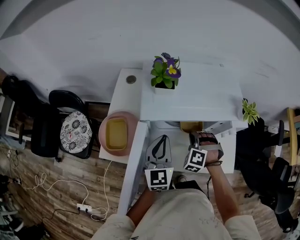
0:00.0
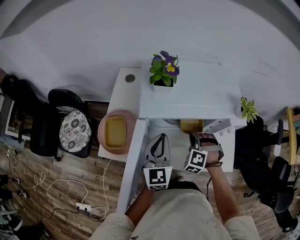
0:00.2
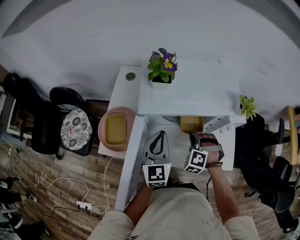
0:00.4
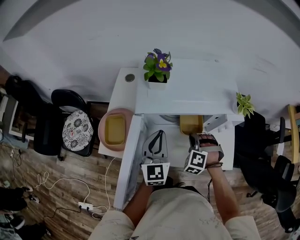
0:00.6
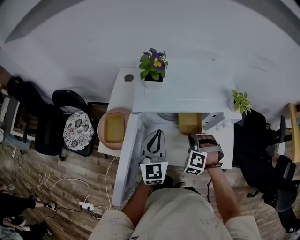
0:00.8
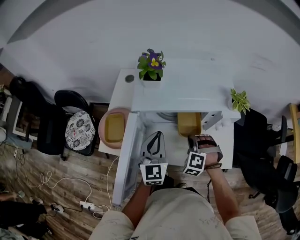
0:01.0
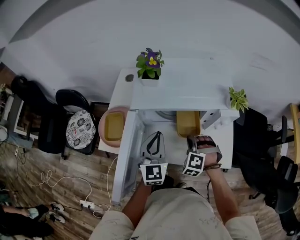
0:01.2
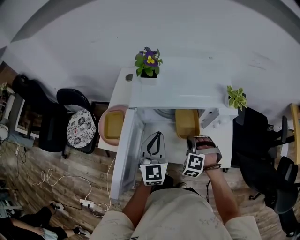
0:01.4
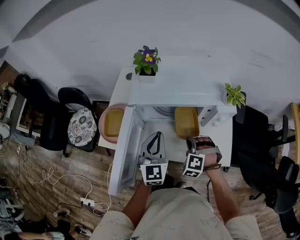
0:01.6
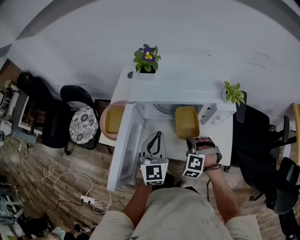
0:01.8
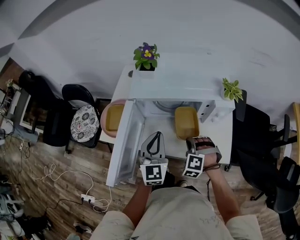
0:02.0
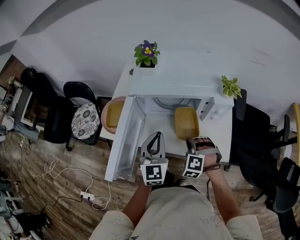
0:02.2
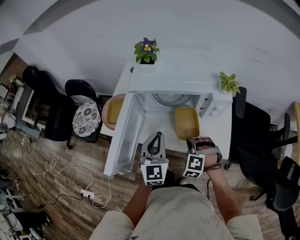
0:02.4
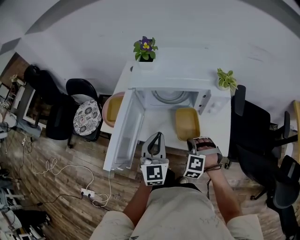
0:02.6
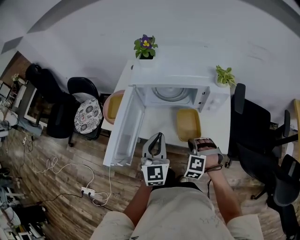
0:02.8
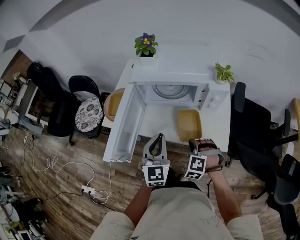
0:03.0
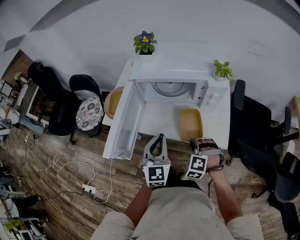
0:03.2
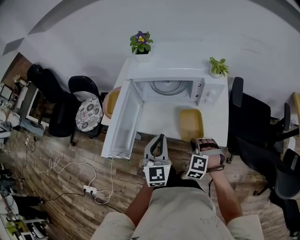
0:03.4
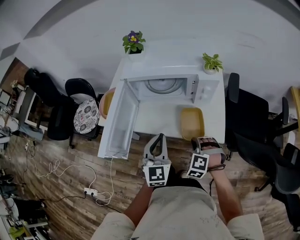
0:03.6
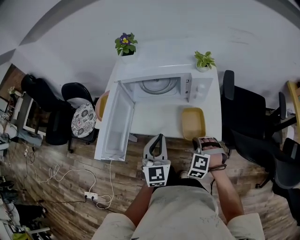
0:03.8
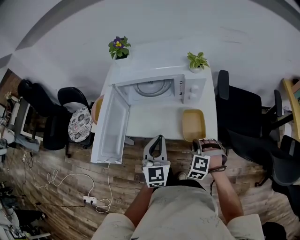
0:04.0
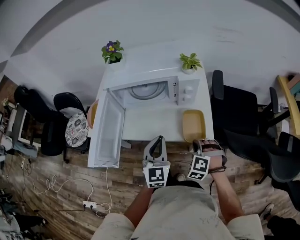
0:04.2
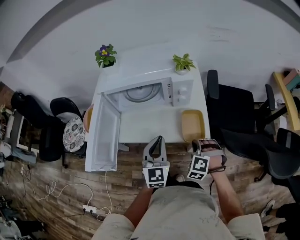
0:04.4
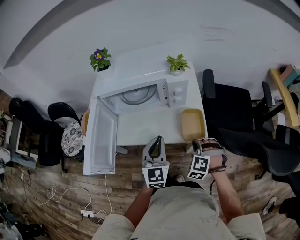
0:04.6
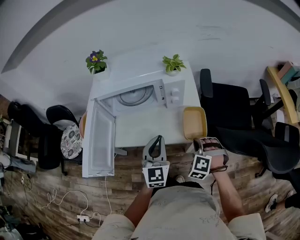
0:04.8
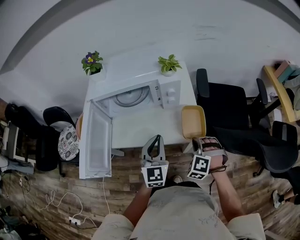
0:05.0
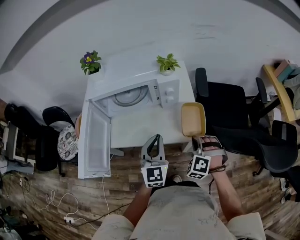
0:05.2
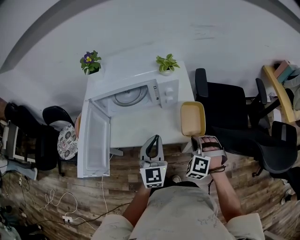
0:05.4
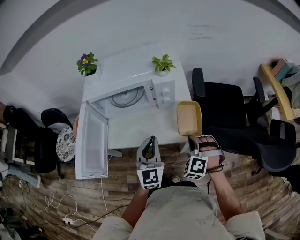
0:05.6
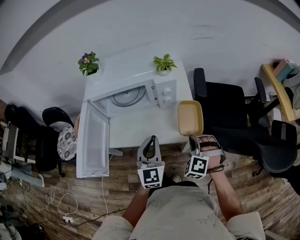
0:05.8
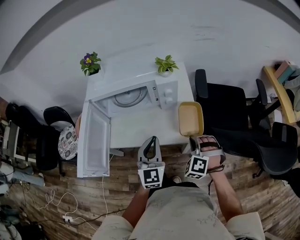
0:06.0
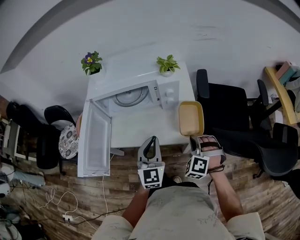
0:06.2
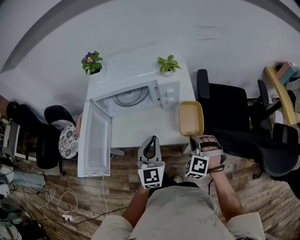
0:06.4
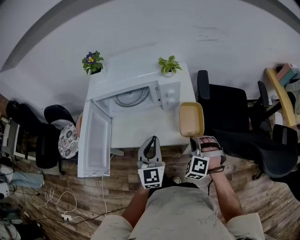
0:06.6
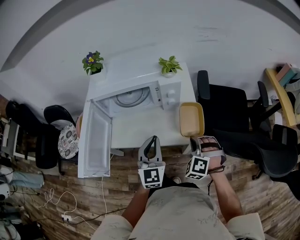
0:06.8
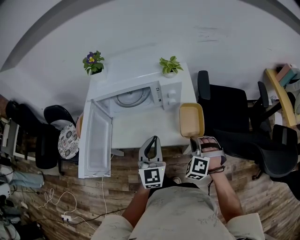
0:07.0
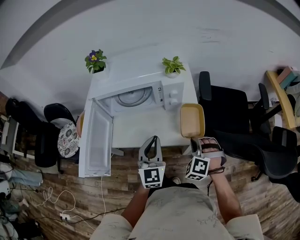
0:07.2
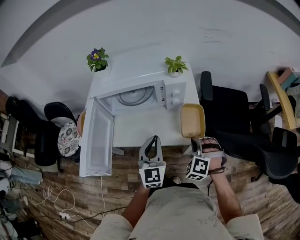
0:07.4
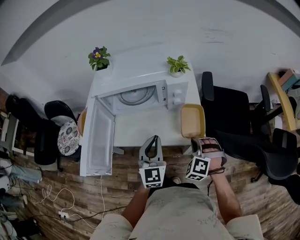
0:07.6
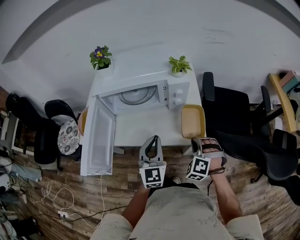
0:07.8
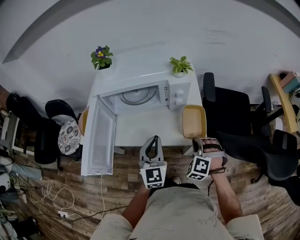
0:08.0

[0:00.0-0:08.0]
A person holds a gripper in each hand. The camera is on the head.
0:00.0 to 0:01.6: The right gripper moves backward, approximately 10 cm. The left gripper shifts by about 5 cm.
0:01.6 to 0:03.2: Both grippers move backward, approximately 15 cm.
0:03.2 to 0:04.8: Both grippers travel together to the right, roughly 15 cm.
0:04.8 to 0:08.0: There are only small adjustments of the grippers.

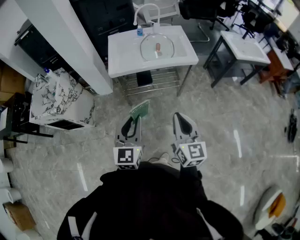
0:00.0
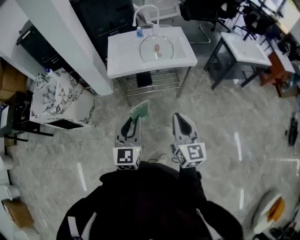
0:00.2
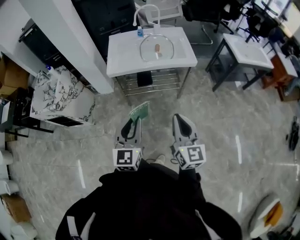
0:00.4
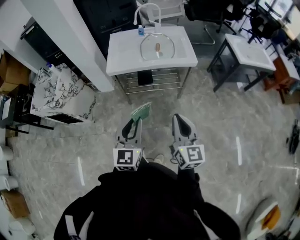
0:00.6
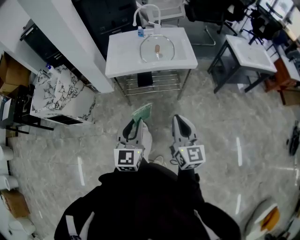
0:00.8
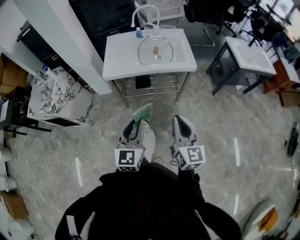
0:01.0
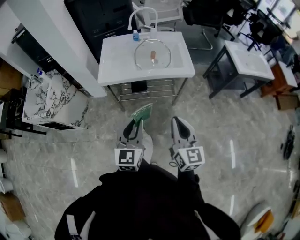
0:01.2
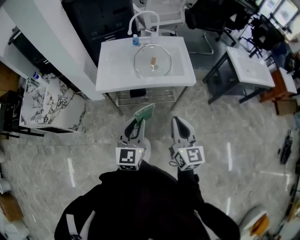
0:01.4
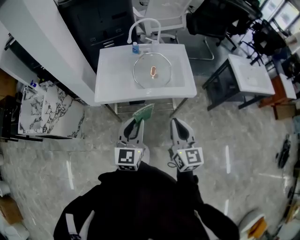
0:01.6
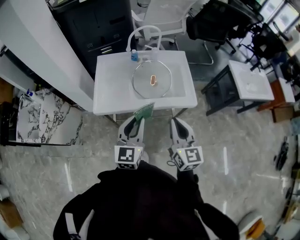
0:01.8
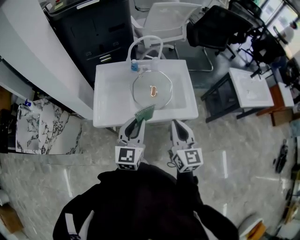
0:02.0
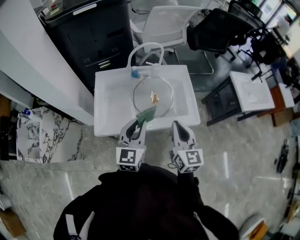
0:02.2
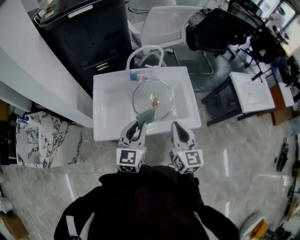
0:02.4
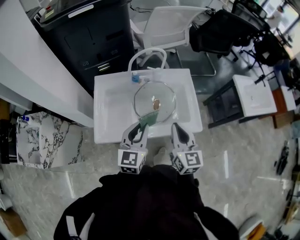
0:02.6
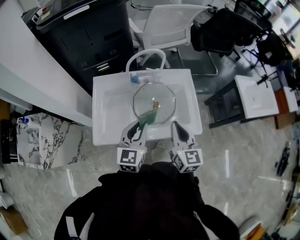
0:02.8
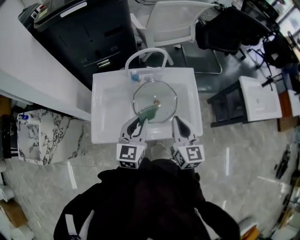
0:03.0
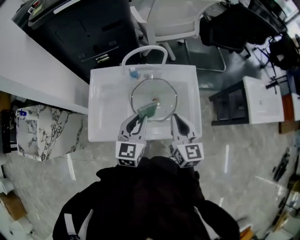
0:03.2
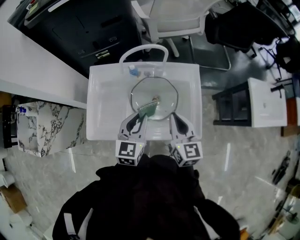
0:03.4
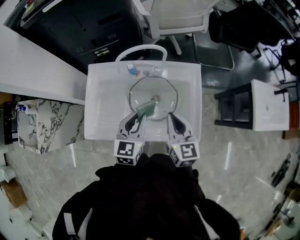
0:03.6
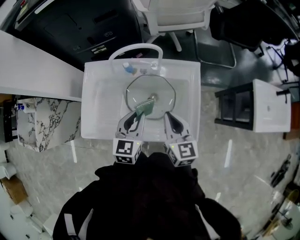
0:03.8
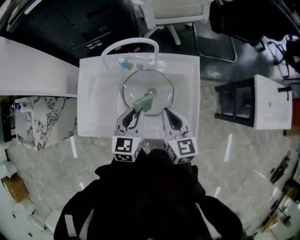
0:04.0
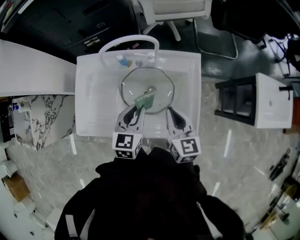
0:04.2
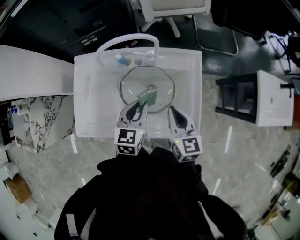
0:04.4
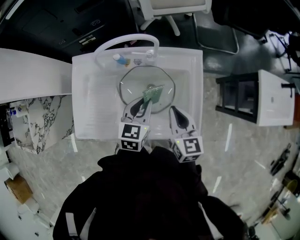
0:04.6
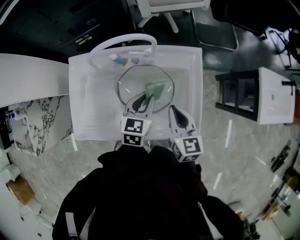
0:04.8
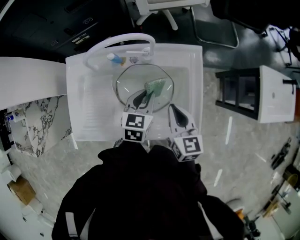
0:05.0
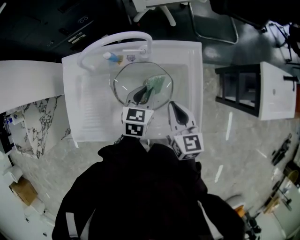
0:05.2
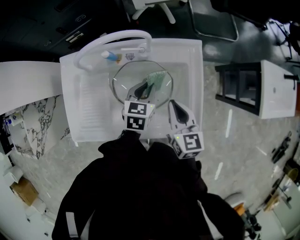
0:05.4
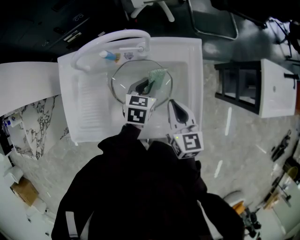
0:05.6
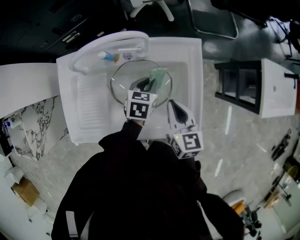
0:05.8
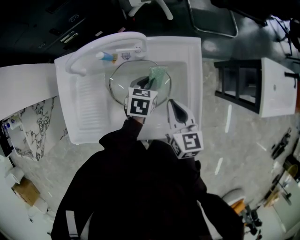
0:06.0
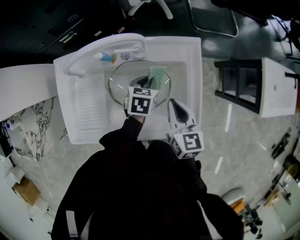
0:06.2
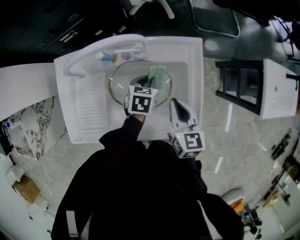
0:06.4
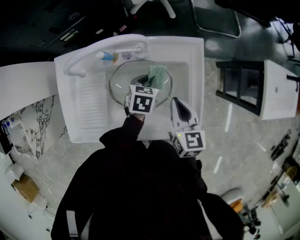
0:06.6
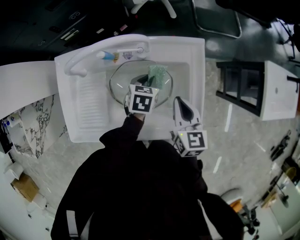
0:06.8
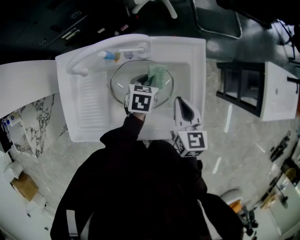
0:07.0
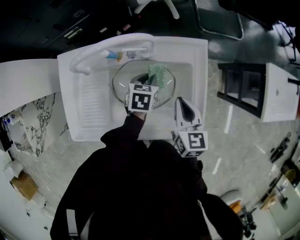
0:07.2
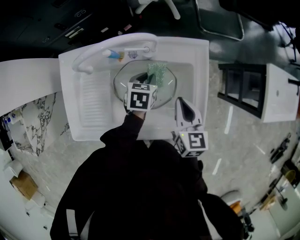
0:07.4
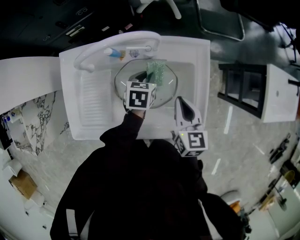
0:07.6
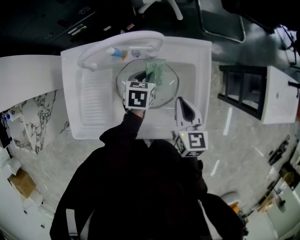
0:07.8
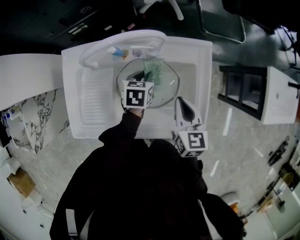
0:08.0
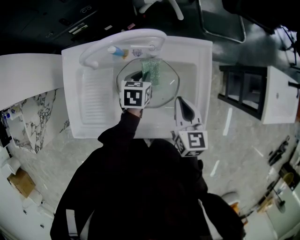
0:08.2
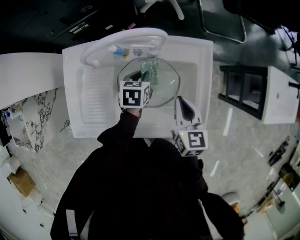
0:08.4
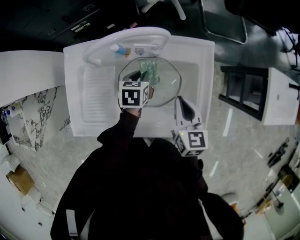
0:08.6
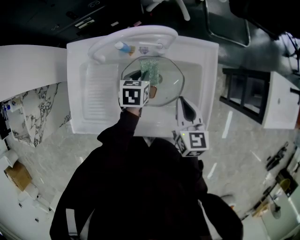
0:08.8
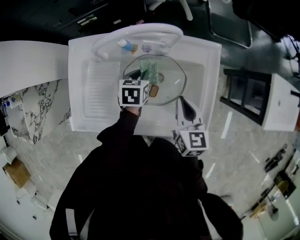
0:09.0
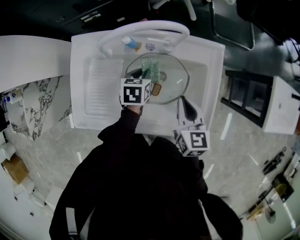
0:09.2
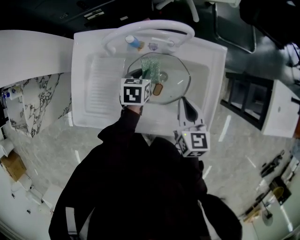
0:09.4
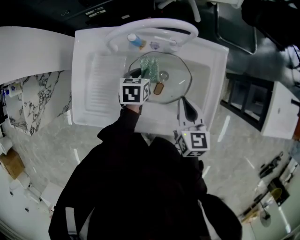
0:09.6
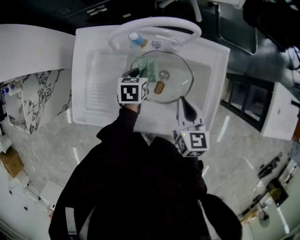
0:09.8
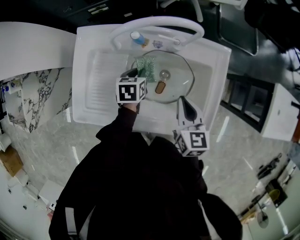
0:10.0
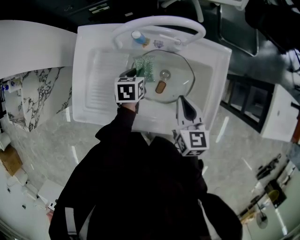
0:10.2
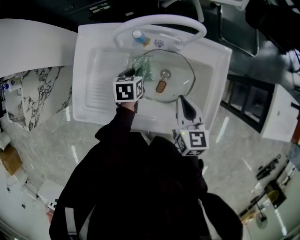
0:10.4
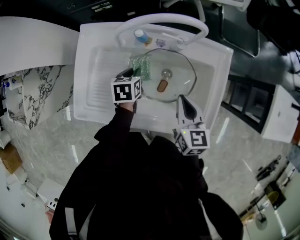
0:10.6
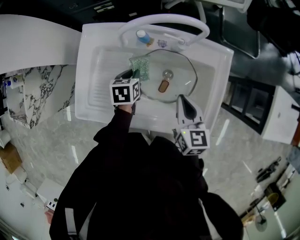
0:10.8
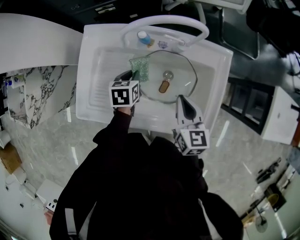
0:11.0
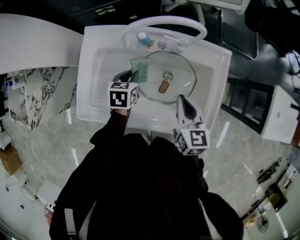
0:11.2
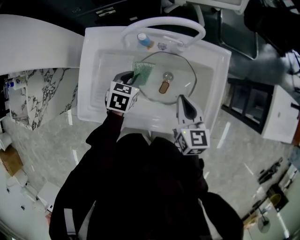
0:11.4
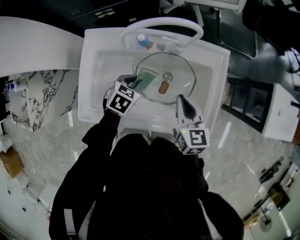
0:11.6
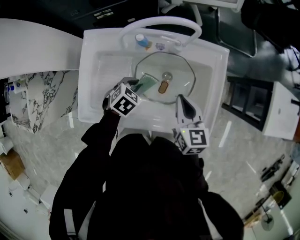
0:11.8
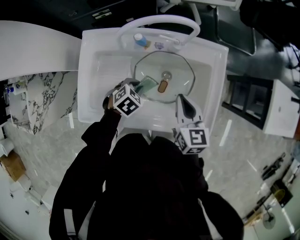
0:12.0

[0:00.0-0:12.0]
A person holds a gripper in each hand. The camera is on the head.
0:00.0 to 0:01.6: The left gripper moves forward and to the right, about 25 cm, while the right gripper travels forward by about 25 cm.
0:01.6 to 0:03.0: Both grippers move forward, about 30 cm.
0:03.0 to 0:04.4: The grippers both shift downward, forward and to the right by approximately 15 cm.
0:04.4 to 0:06.0: The right gripper goes some 5 cm downward; the left gripper moves downward, forward and to the right, some 20 cm, and rotates some 30 degrees.
0:06.0 to 0:07.6: The grippers make only small movements.
0:07.6 to 0:09.0: The left gripper heads to the left, covering some 5 cm.
0:09.0 to 0:10.4: The left gripper travels to the left by about 5 cm.
0:10.4 to 0:12.0: The left gripper moves backward, some 5 cm, and twists some 50 degrees clockwise, seen from behind.

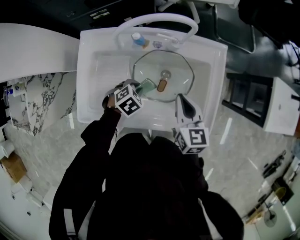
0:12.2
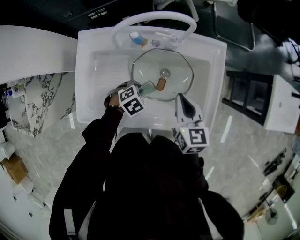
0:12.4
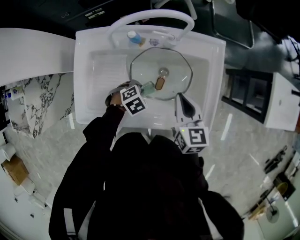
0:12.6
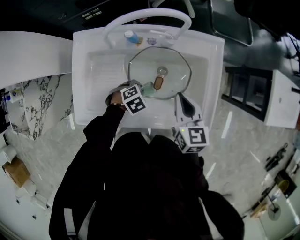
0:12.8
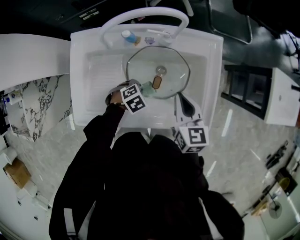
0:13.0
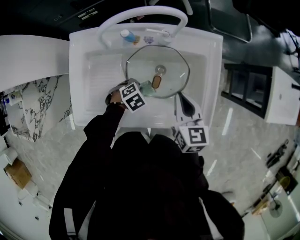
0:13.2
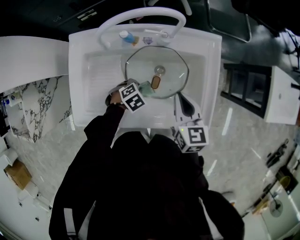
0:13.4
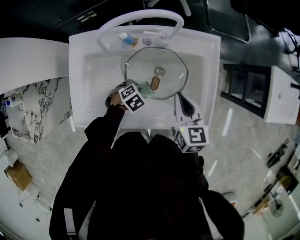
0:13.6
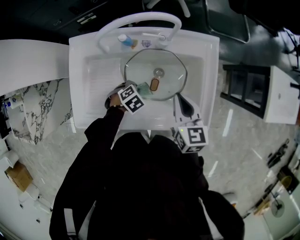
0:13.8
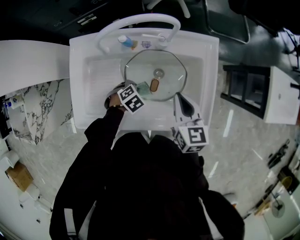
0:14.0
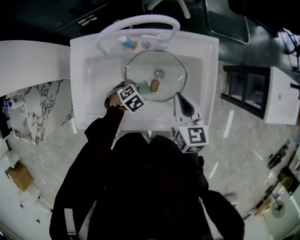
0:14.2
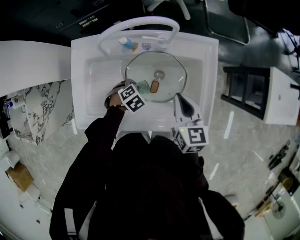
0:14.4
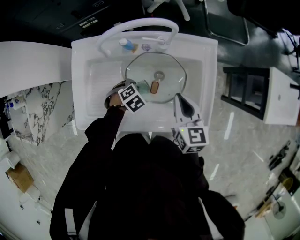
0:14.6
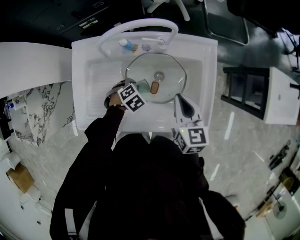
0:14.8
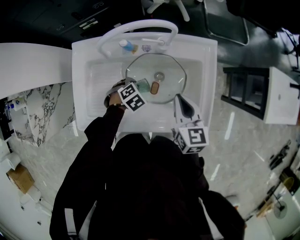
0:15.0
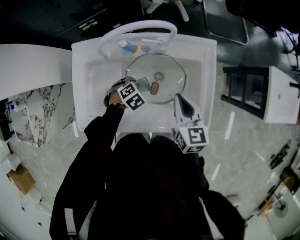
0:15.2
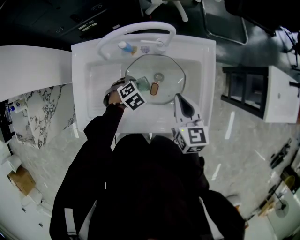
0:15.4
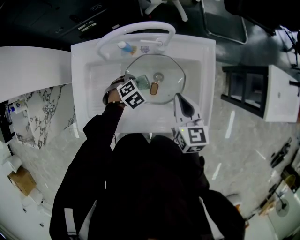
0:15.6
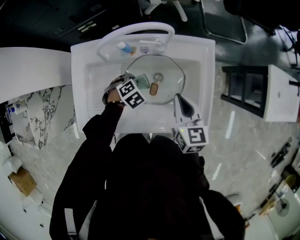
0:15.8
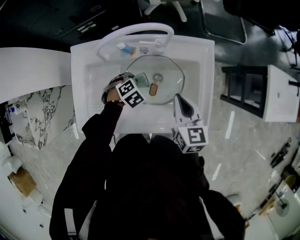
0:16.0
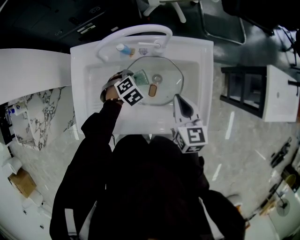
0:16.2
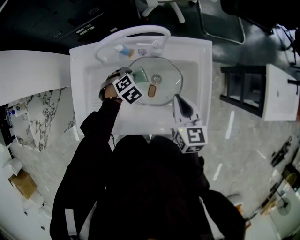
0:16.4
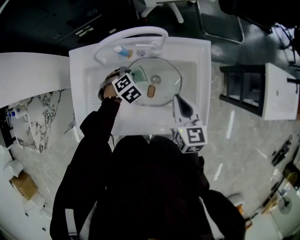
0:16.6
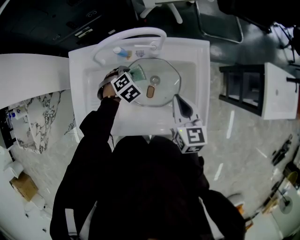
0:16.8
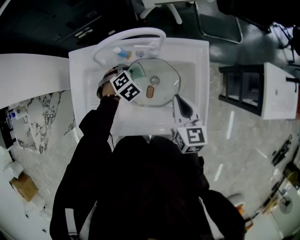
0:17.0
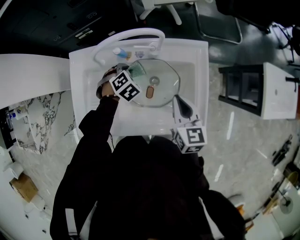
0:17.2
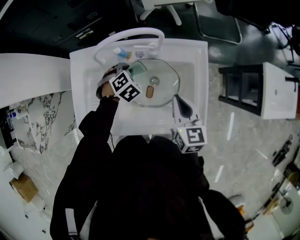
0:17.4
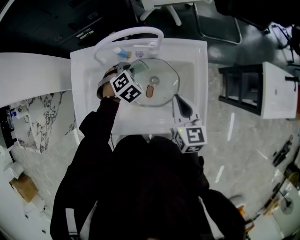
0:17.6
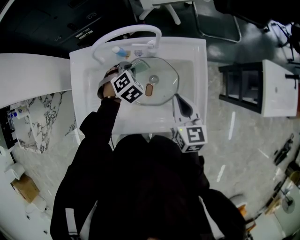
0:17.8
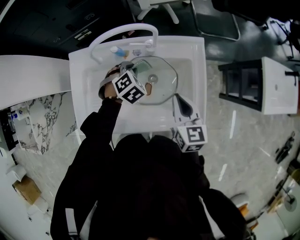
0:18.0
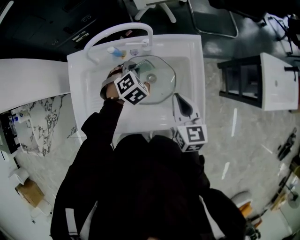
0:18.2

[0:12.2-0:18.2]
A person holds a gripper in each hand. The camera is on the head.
0:12.2 to 0:13.8: The left gripper moves downward, about 5 cm.
0:13.8 to 0:15.2: The left gripper moves some 5 cm.
0:15.2 to 0:16.6: The left gripper shifts by some 10 cm.
0:16.6 to 0:18.2: The left gripper travels upward by roughly 5 cm.
